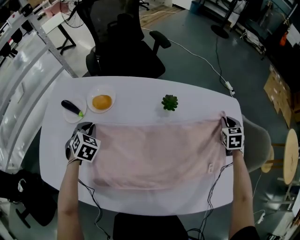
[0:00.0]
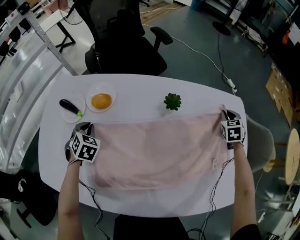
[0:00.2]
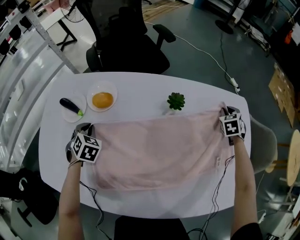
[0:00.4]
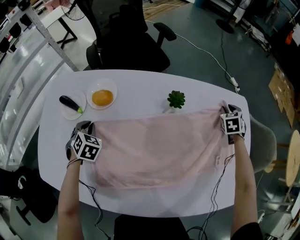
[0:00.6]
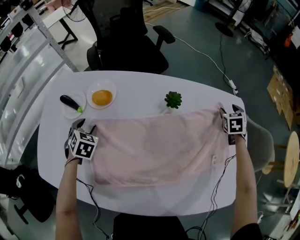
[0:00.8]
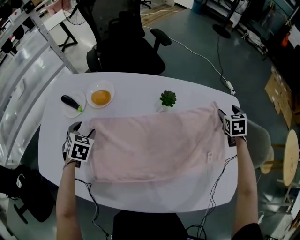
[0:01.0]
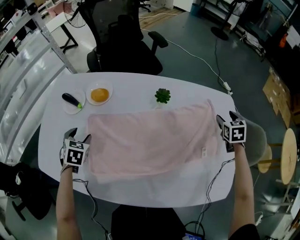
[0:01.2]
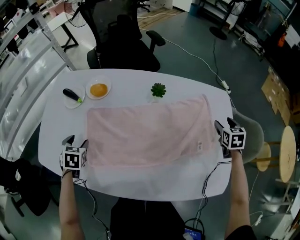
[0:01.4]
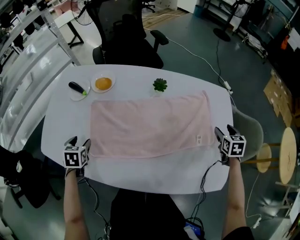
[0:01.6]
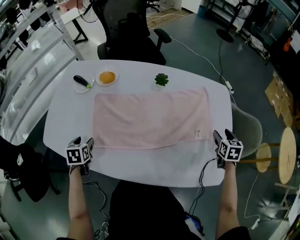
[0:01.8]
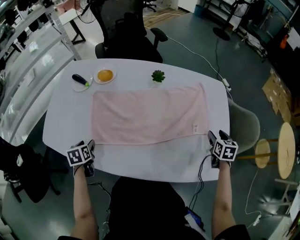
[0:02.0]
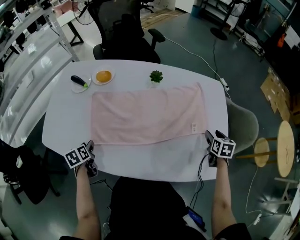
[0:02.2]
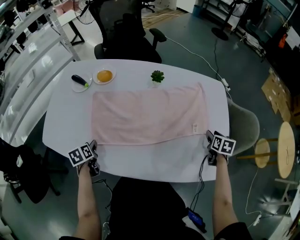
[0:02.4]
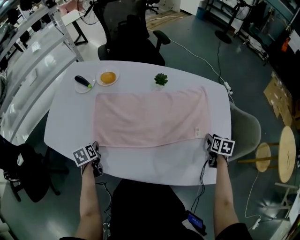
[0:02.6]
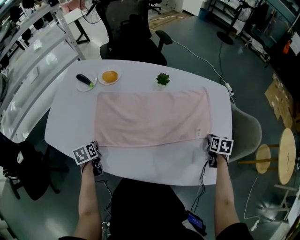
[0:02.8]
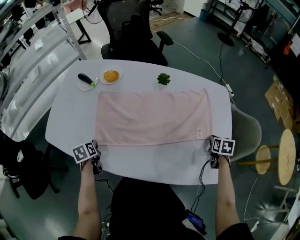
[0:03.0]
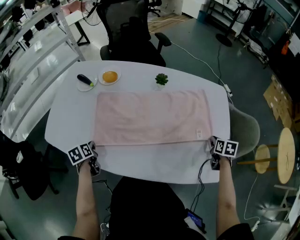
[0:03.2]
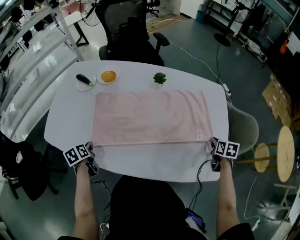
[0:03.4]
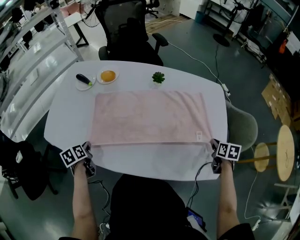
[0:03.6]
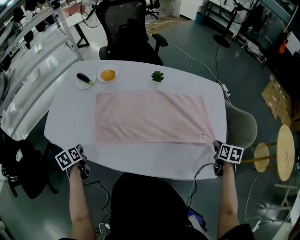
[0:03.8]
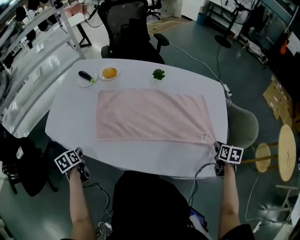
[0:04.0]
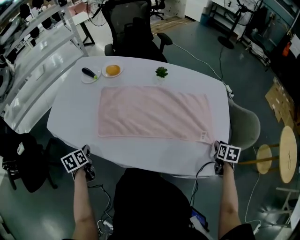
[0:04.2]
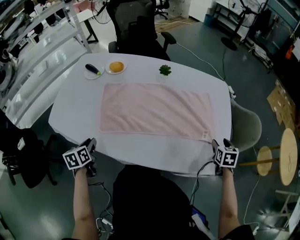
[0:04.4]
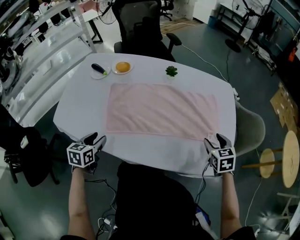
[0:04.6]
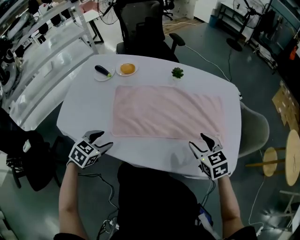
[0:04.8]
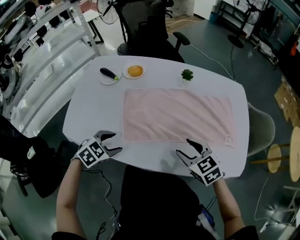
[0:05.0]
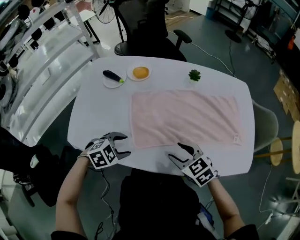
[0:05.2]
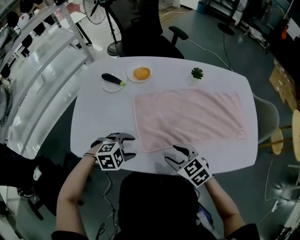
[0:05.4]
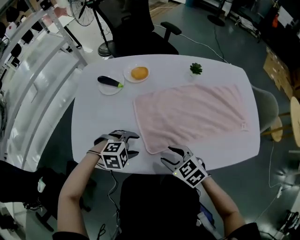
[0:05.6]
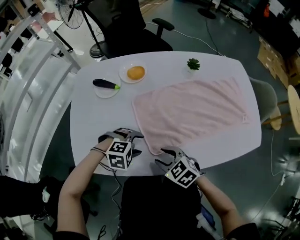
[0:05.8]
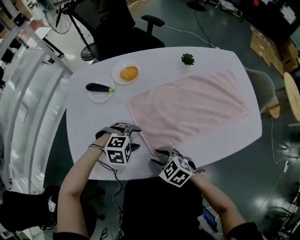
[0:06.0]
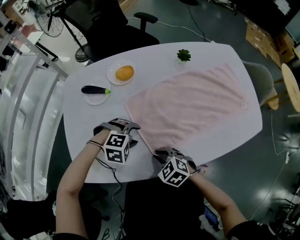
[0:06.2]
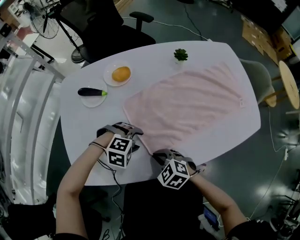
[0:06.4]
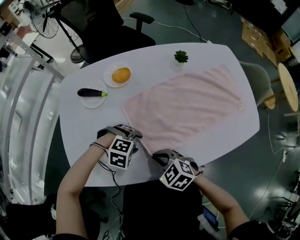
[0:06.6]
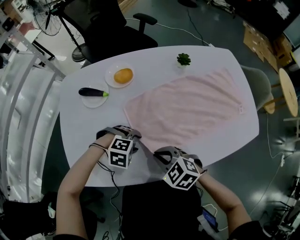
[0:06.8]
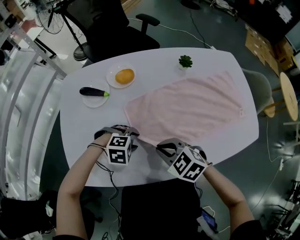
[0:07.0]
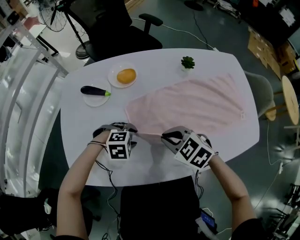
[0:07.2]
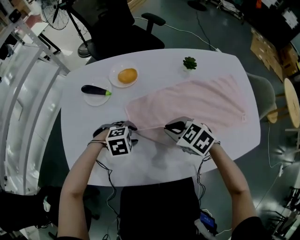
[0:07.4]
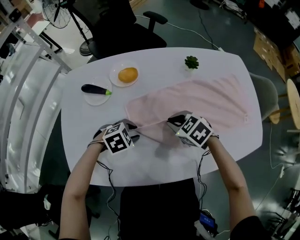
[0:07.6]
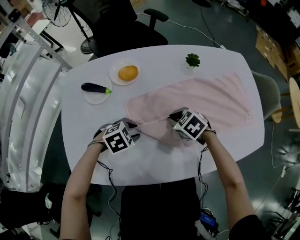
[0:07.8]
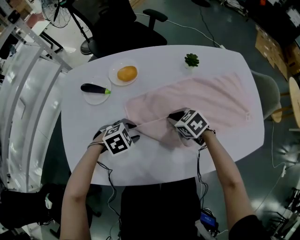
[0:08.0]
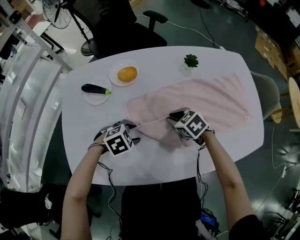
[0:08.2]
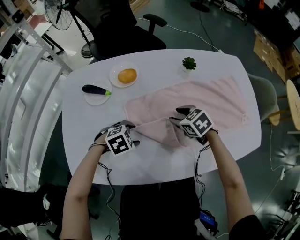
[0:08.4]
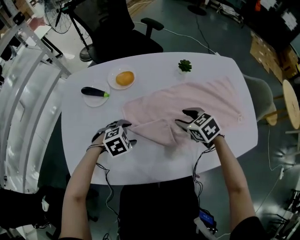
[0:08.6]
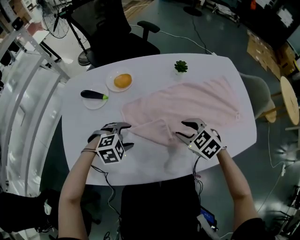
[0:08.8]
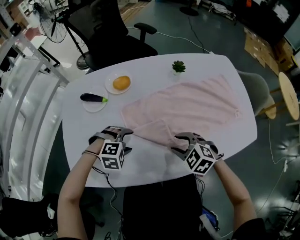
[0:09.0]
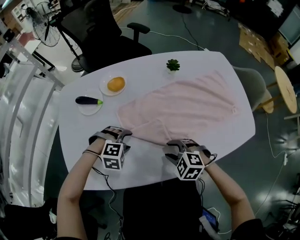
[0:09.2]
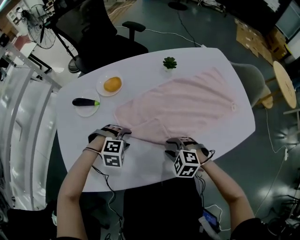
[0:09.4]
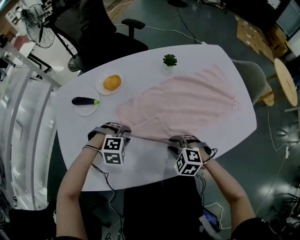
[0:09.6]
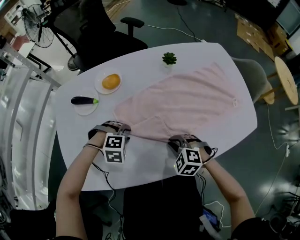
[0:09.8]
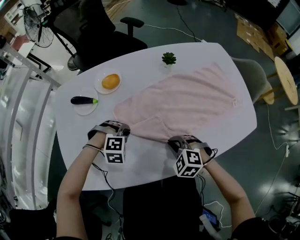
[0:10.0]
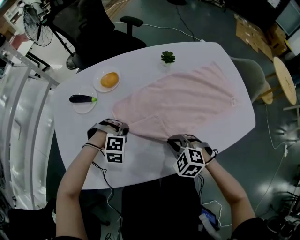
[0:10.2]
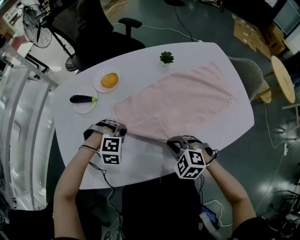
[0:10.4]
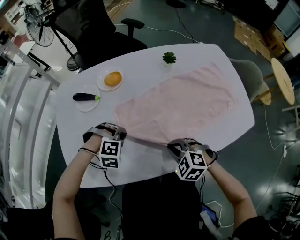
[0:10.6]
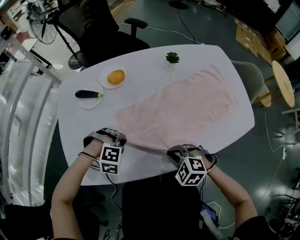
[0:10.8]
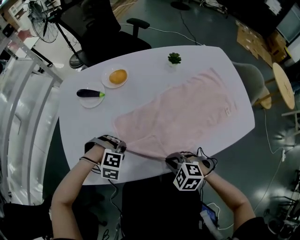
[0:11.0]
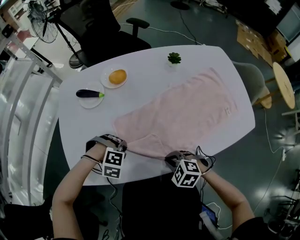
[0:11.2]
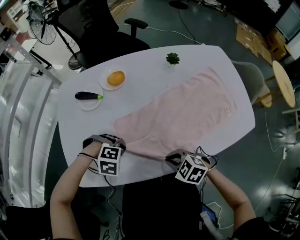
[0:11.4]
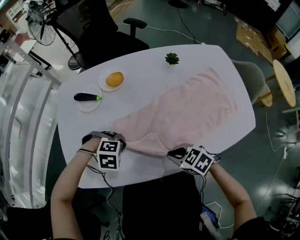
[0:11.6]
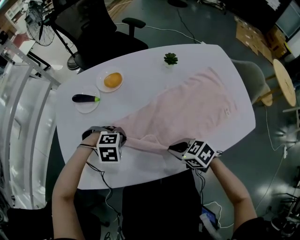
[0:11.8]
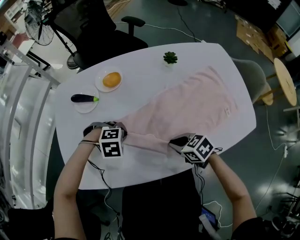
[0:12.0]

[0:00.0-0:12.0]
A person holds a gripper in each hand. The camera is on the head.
0:00.0 to 0:01.6: Both grippers travel together backward, some 15 cm. The left gripper changes its angle by some 30 degrees, and opens its fingers, while the right gripper opens.
0:01.6 to 0:03.0: The grippers both shift backward and downward by about 10 cm. The left gripper swivels approximately 30 degrees, and closes its fingers. Meanwhile the right gripper closes.
0:03.0 to 0:04.4: The left gripper heads backward and upward, covering approximately 10 cm; the right gripper is displaced backward by about 10 cm, and opens up.
0:04.4 to 0:06.0: The left gripper ends up some 15 cm from where it was, twists approximately 110 degrees clockwise, seen from behind, and opens its fingers. Meanwhile the right gripper moves about 60 cm, and turns by approximately 40 degrees.
0:06.0 to 0:07.6: The right gripper ends up roughly 20 cm from where it was, and closes. Meanwhile the left gripper changes place by roughly 5 cm, changes its angle by roughly 30 degrees, and closes.
0:07.6 to 0:09.0: The left gripper swivels some 30 degrees, and opens its fingers, while the right gripper reaches roughly 5 cm downward, then returns, and opens its fingers.
0:09.0 to 0:10.4: The left gripper closes up; the right gripper closes.
0:10.4 to 0:12.0: The right gripper turns by about 40 degrees. The left gripper changes its angle by roughly 20 degrees.

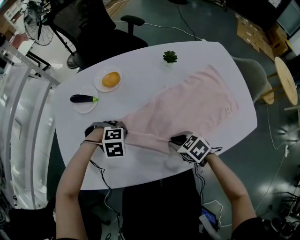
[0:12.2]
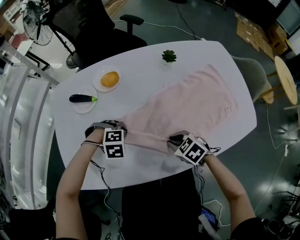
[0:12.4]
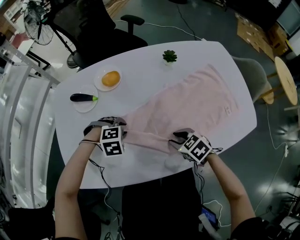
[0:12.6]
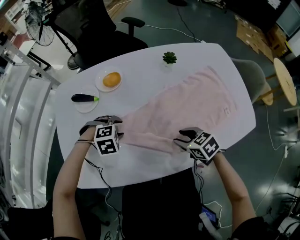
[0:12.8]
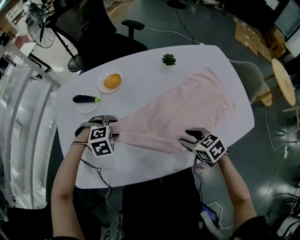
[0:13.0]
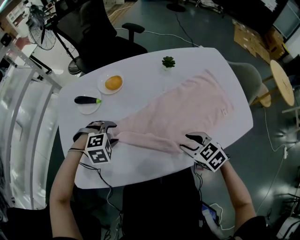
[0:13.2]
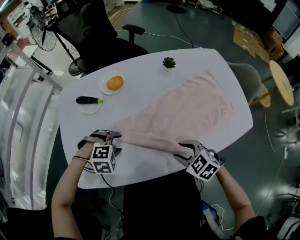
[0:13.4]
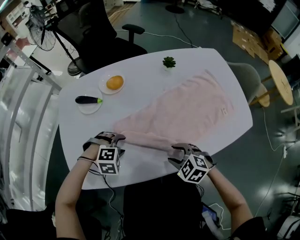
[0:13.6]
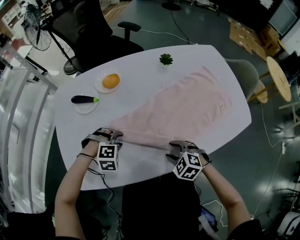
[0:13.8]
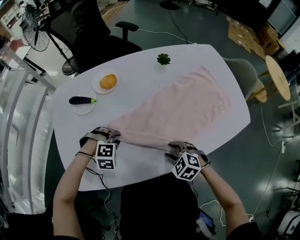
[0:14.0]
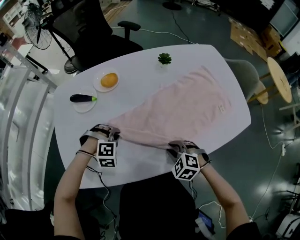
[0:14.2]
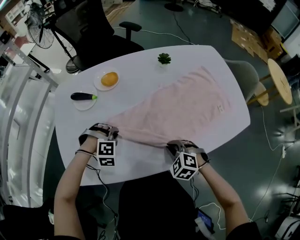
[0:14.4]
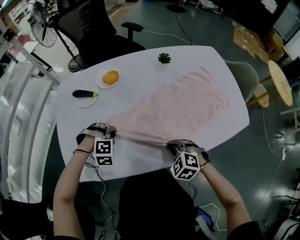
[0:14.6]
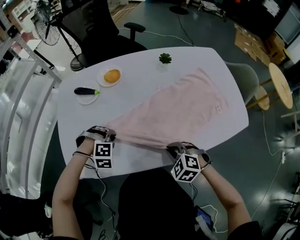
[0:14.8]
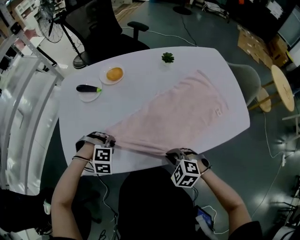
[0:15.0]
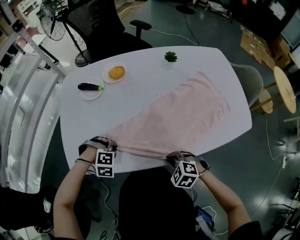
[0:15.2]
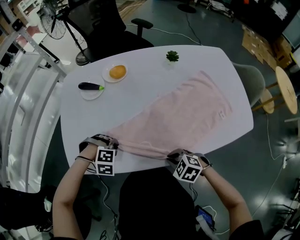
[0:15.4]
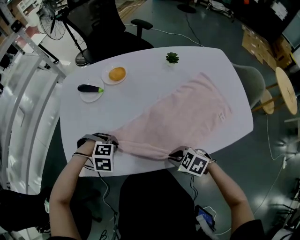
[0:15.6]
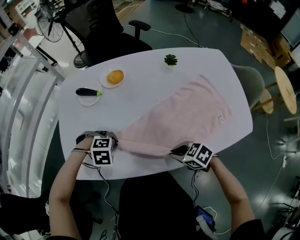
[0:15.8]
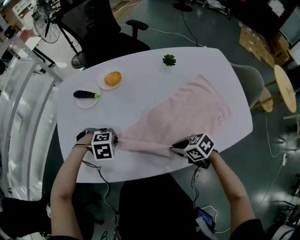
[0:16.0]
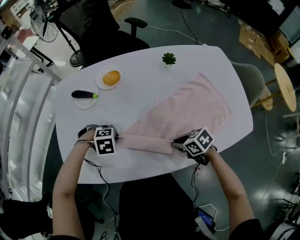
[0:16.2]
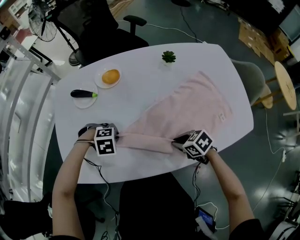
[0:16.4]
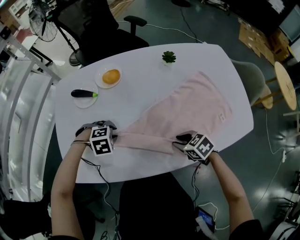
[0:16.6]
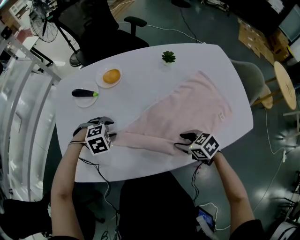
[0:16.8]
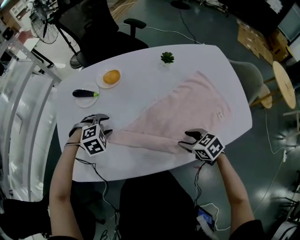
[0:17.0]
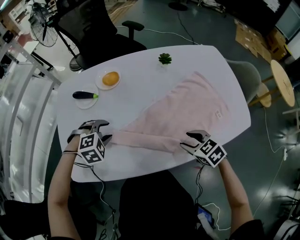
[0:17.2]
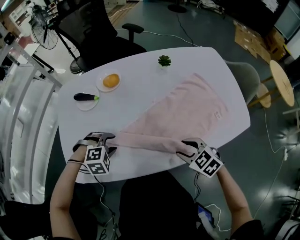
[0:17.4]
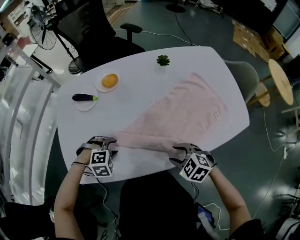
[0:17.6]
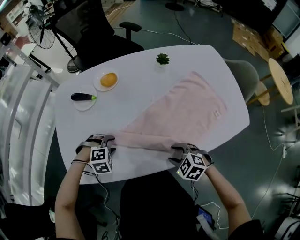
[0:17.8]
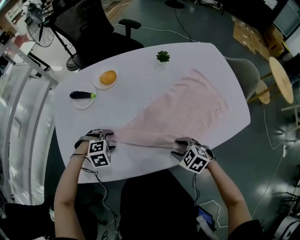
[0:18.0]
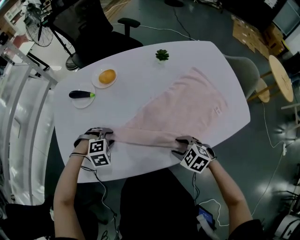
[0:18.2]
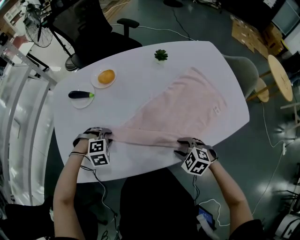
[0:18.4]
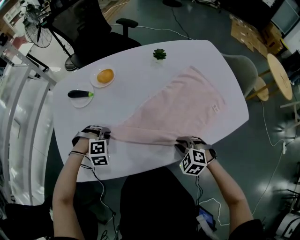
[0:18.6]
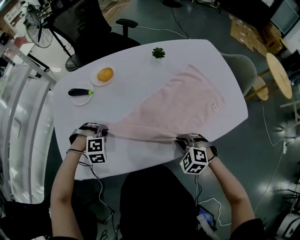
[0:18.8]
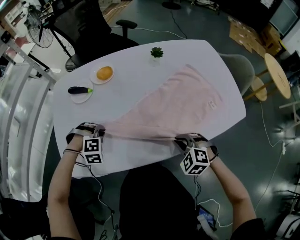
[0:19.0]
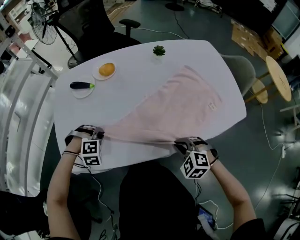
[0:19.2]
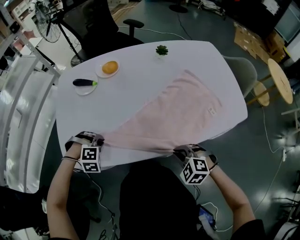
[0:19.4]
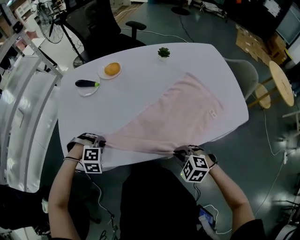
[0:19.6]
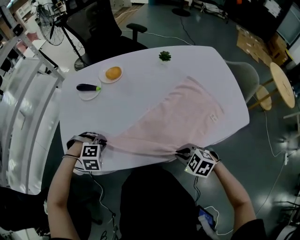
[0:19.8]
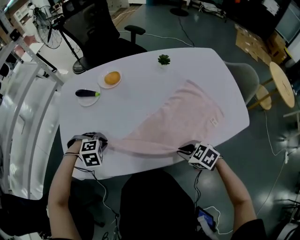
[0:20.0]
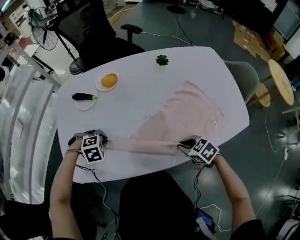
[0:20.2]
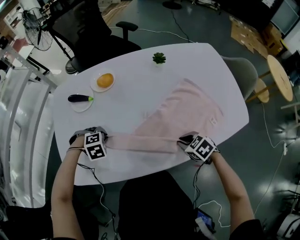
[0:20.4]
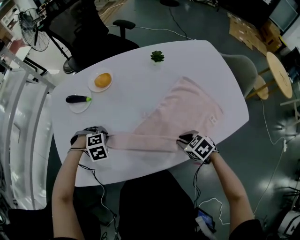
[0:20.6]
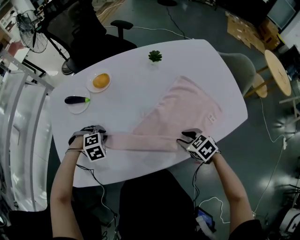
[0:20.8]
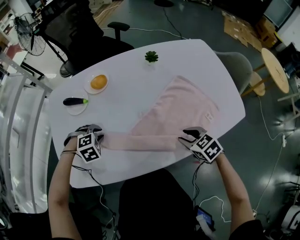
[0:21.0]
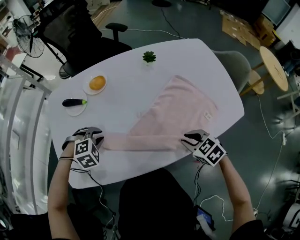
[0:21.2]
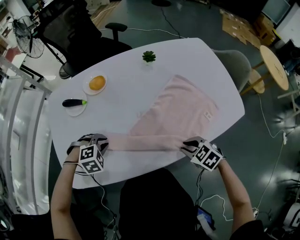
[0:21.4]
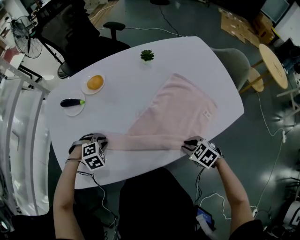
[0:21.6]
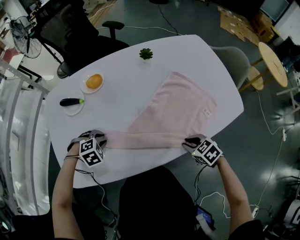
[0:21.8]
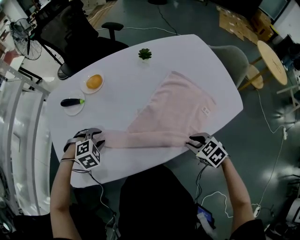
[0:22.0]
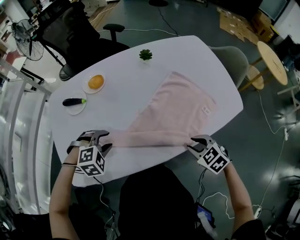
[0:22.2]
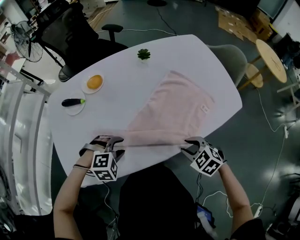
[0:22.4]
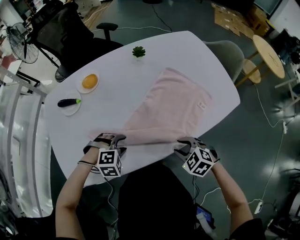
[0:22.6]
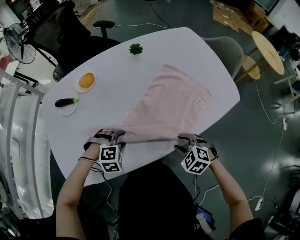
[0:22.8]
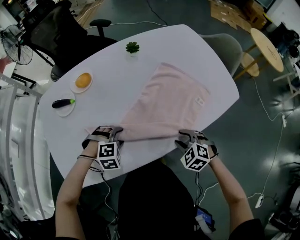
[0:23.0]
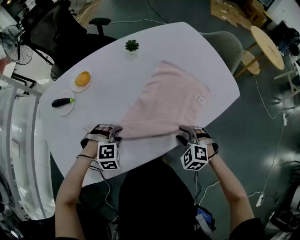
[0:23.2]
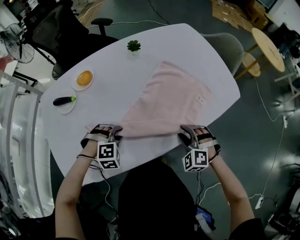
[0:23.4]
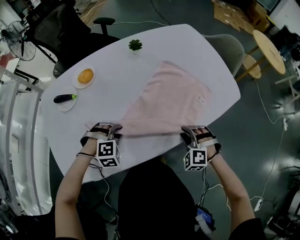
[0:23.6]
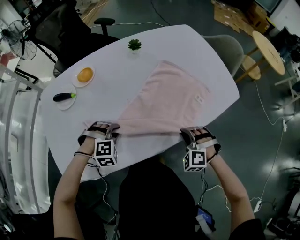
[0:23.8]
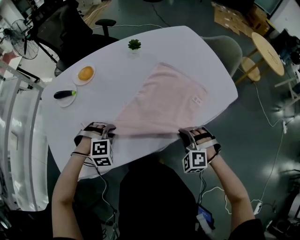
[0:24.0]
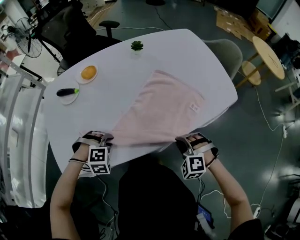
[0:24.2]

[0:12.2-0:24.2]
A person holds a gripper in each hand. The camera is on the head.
0:12.2 to 0:13.8: The right gripper reaches some 5 cm upward, then returns, swivels roughly 30 degrees, and opens, while the left gripper opens up.
0:13.8 to 0:15.2: The right gripper ends up approximately 10 cm from where it was, and closes; the left gripper ends up some 10 cm from where it was, and closes its fingers.
0:15.2 to 0:16.6: The left gripper changes place by about 10 cm, while the right gripper shifts by about 15 cm, and swivels some 40 degrees.
0:16.6 to 0:18.2: The right gripper rotates some 20 degrees.
0:18.2 to 0:19.8: Both grippers travel together backward, about 5 cm. The right gripper closes, while the left gripper closes its fingers.
0:19.8 to 0:21.2: The right gripper ends up about 10 cm from where it was, and changes its angle by about 30 degrees. Meanwhile the left gripper changes place by approximately 10 cm.
0:21.2 to 0:22.6: The right gripper heads backward, covering about 5 cm. The left gripper moves to the right and backward, roughly 15 cm.
0:22.6 to 0:24.2: The left gripper closes; the right gripper swivels roughly 40 degrees, and closes its fingers.
